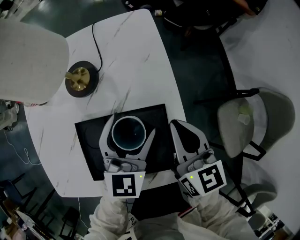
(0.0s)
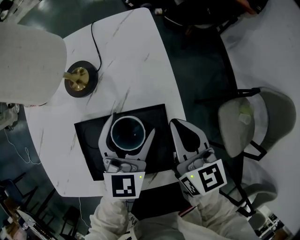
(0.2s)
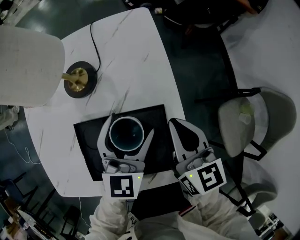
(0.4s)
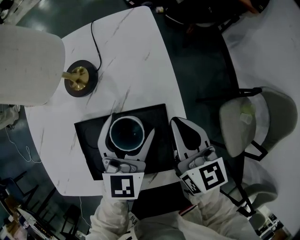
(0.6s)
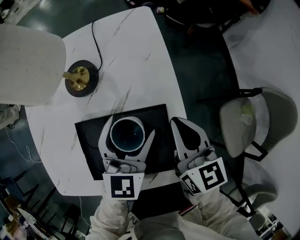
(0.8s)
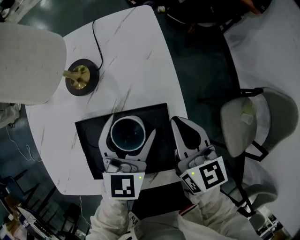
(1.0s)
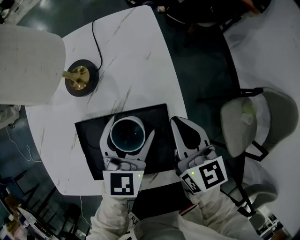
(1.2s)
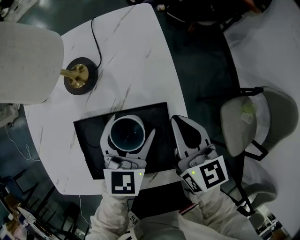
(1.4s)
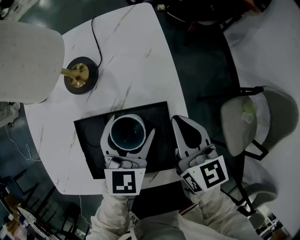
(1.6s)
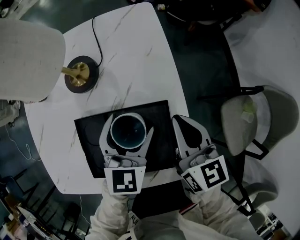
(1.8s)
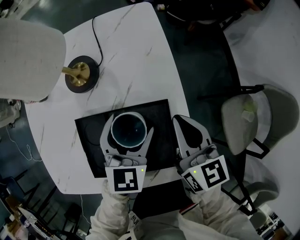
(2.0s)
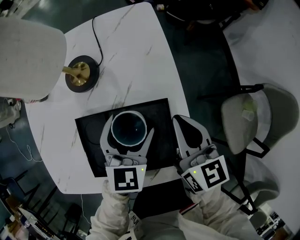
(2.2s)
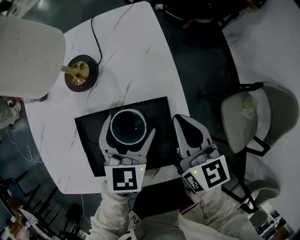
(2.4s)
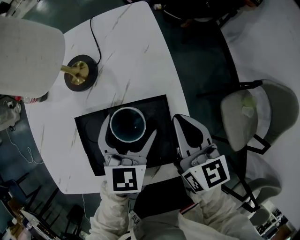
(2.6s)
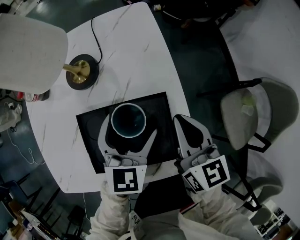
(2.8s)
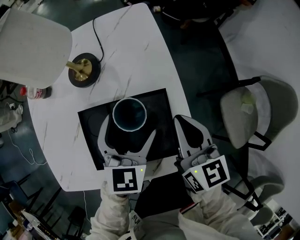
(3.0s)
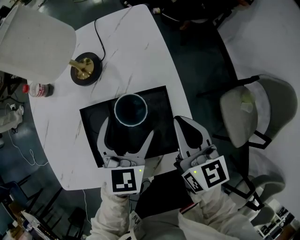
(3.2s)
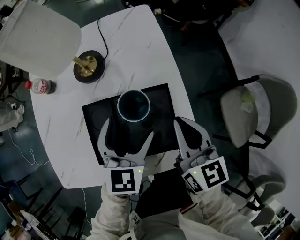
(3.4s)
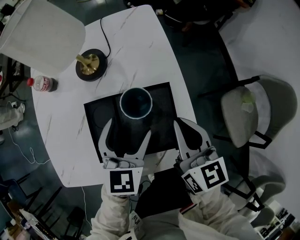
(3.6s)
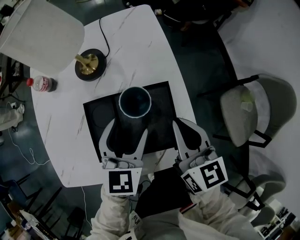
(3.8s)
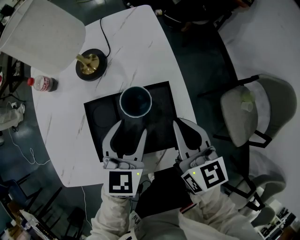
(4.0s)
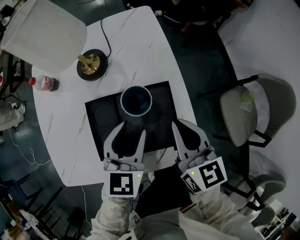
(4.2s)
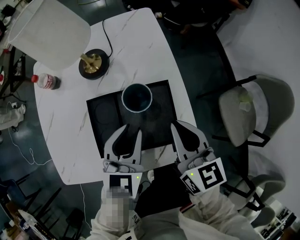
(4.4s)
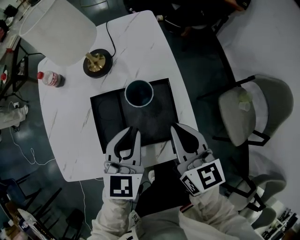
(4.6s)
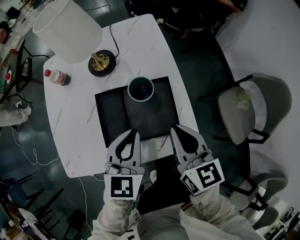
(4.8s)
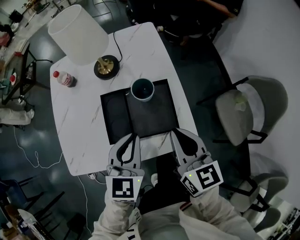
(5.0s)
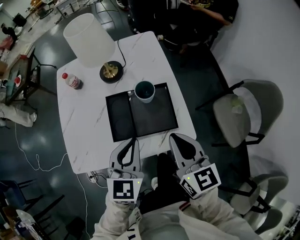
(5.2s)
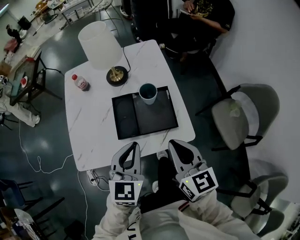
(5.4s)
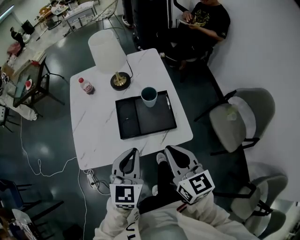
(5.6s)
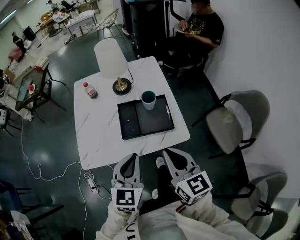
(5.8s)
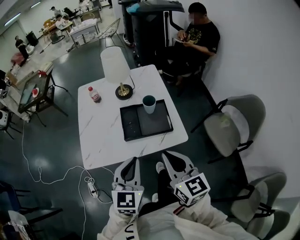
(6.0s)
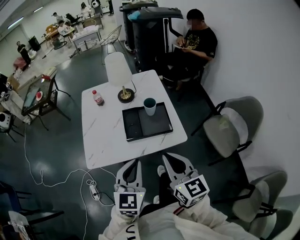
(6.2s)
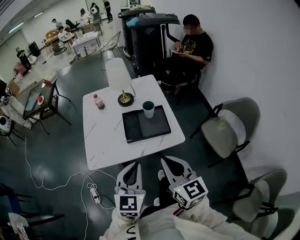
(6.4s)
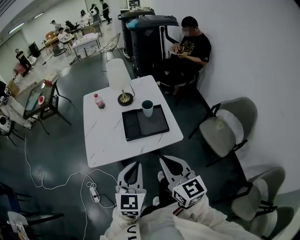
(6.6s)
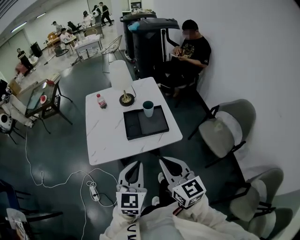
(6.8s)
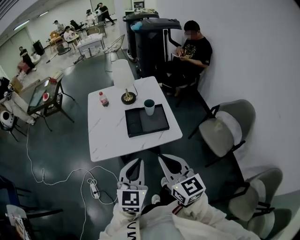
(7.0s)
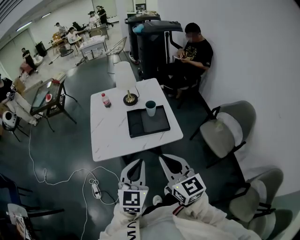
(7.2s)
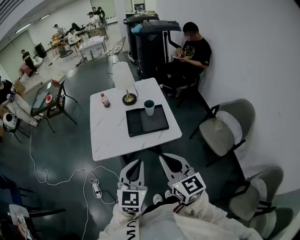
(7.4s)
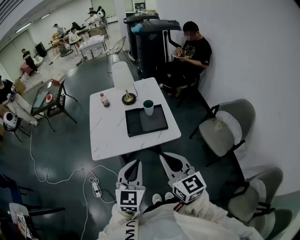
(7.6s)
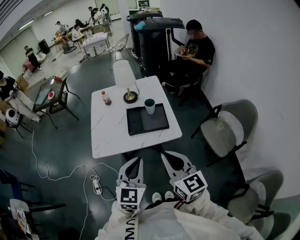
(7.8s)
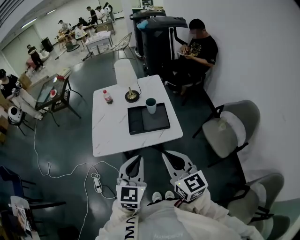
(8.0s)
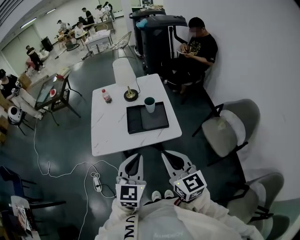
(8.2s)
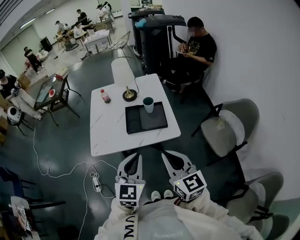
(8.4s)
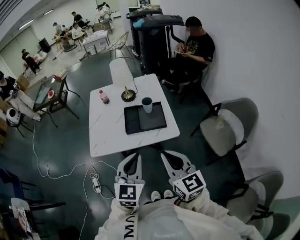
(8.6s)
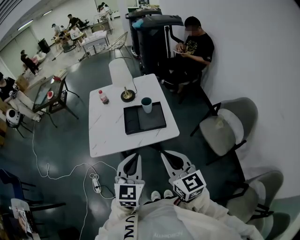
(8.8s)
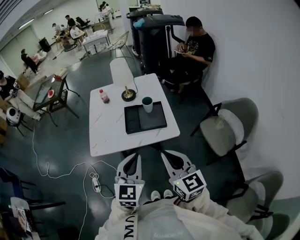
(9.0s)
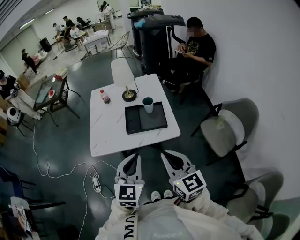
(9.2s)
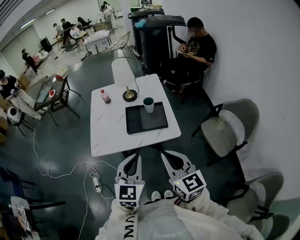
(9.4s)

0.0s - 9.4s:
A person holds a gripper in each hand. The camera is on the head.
0.0s - 1.6s: The grippers move only a little.
1.6s - 3.2s: The left gripper shifts by approximately 5 cm. The right gripper shifts some 5 cm backward.
3.2s - 4.8s: The left gripper is displaced backward and upward by some 10 cm, and closes up. The right gripper heads backward, covering some 10 cm.
4.8s - 6.2s: Both grippers move backward and upward, about 30 cm.
6.2s - 7.8s: The grippers both shift backward and upward by roughly 10 cm.
7.8s - 9.4s: The grippers stay close to where they were, moving slightly.

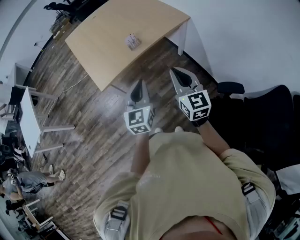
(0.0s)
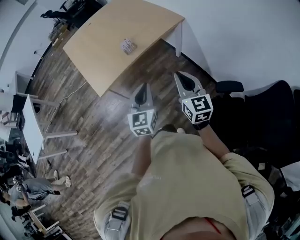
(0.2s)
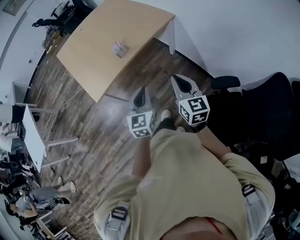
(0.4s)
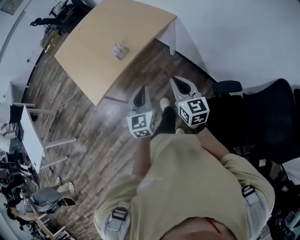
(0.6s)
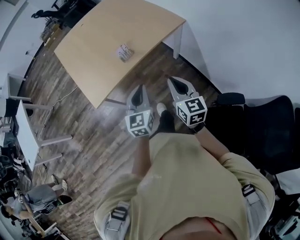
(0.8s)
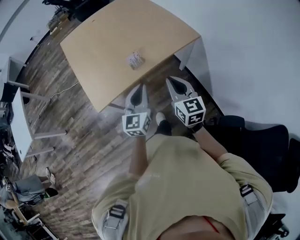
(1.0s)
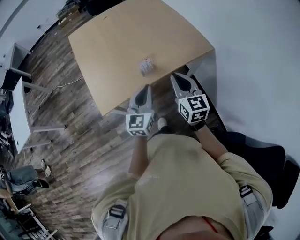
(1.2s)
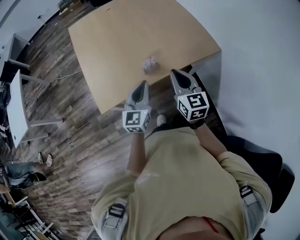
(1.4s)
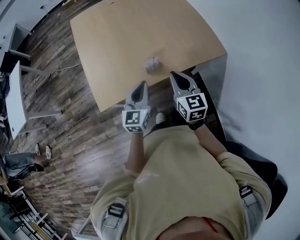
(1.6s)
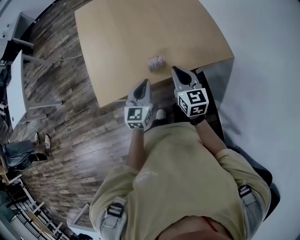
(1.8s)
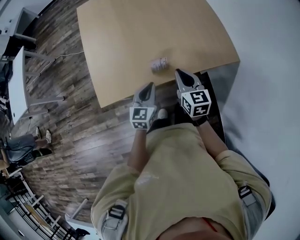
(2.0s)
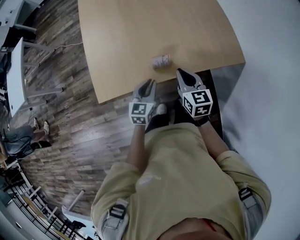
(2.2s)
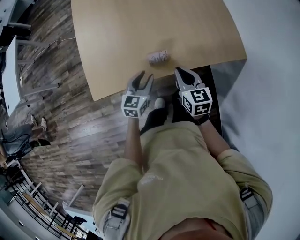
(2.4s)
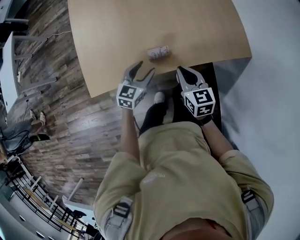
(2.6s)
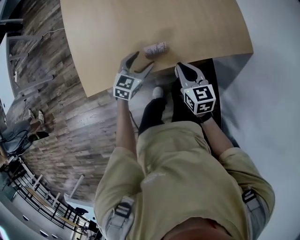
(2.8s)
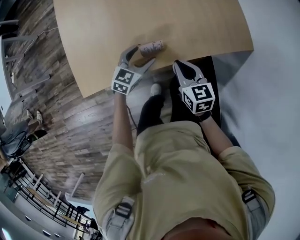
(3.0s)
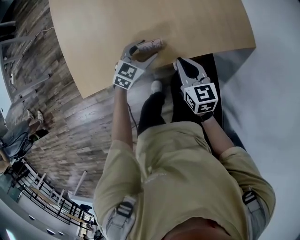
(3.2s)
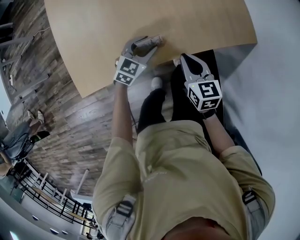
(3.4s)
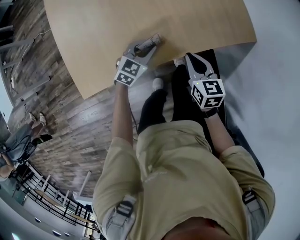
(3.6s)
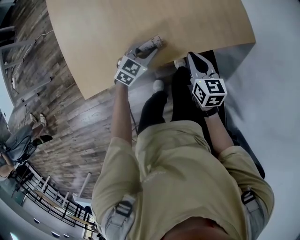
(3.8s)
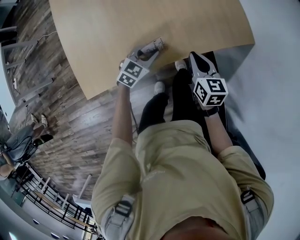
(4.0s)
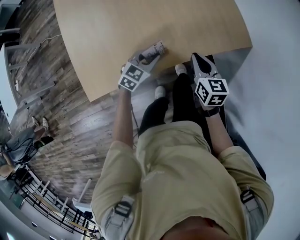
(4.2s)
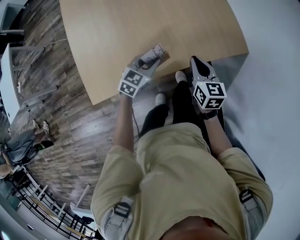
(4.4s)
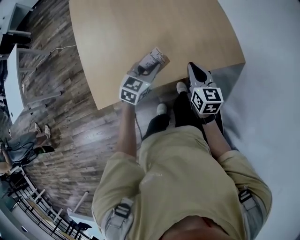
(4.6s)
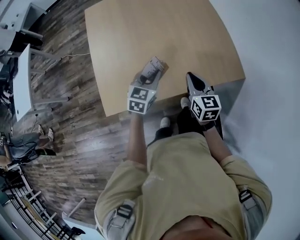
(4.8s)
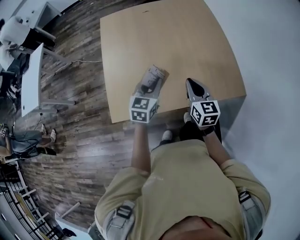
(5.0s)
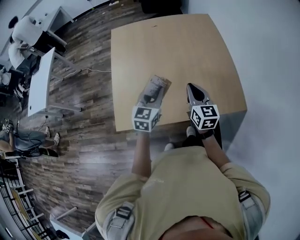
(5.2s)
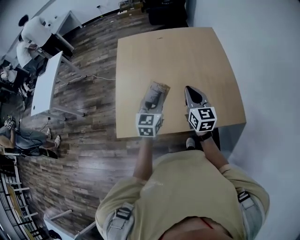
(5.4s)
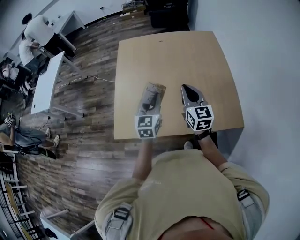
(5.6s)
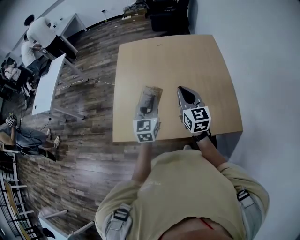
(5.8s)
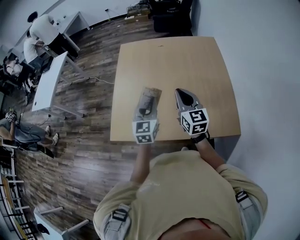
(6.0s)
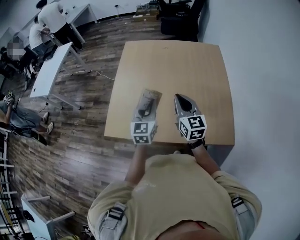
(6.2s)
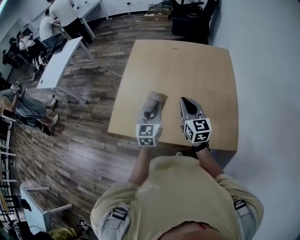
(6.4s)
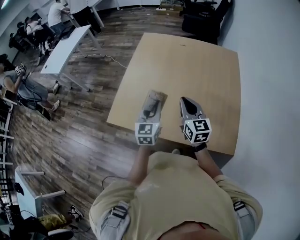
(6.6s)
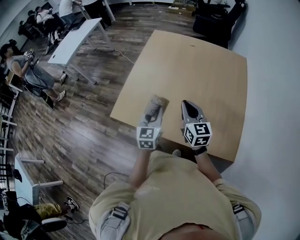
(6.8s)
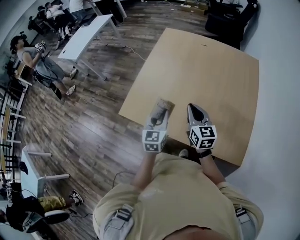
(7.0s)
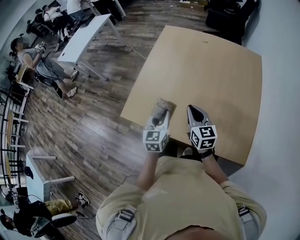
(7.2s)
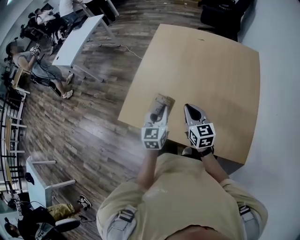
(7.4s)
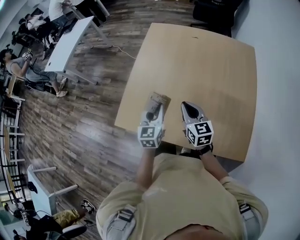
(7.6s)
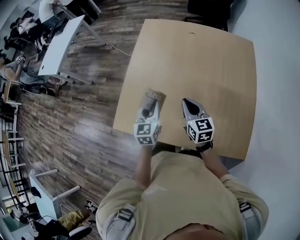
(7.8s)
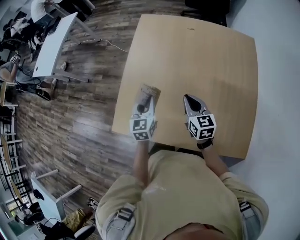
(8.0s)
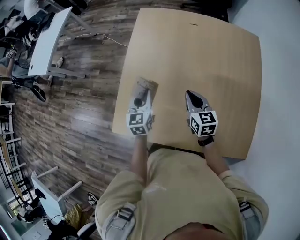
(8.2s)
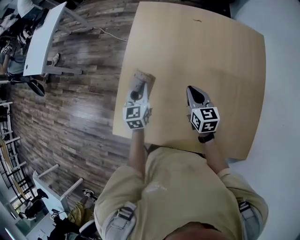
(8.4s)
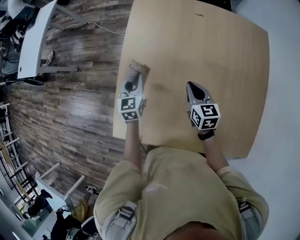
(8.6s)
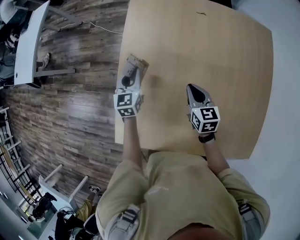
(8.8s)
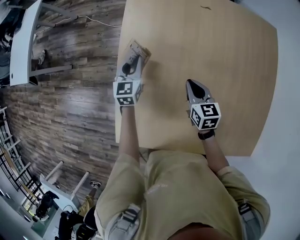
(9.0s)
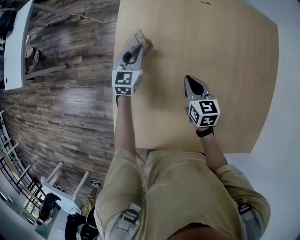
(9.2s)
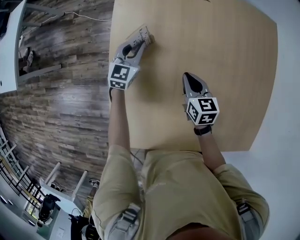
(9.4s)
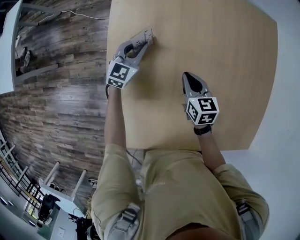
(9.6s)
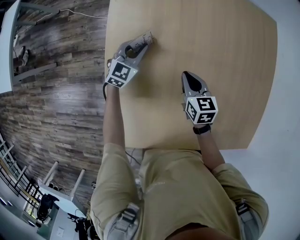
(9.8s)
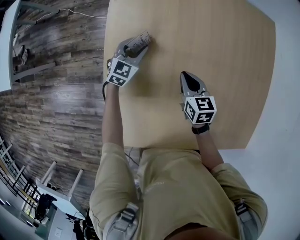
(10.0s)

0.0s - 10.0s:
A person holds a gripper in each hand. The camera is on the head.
0.0s - 1.4s: The grippers both shift forward by approximately 35 cm.
1.4s - 2.8s: The grippers both shift downward and forward by approximately 25 cm. The left gripper turns by approximately 30 degrees, and opens its fingers. Meanwhile the right gripper turns by approximately 30 degrees.
2.8s - 4.2s: The left gripper closes, while the right gripper changes place by about 5 cm.
4.2s - 5.8s: Both grippers move upward, roughly 30 cm. The right gripper changes its angle by roughly 40 degrees. The left gripper rotates about 60 degrees.
5.8s - 7.2s: The grippers both shift downward by approximately 10 cm. The right gripper swivels some 30 degrees, while the left gripper swivels some 20 degrees.
7.2s - 8.6s: The left gripper goes some 40 cm forward, while the right gripper shifts approximately 30 cm forward and downward.
8.6s - 10.0s: The right gripper heads downward and forward, covering some 15 cm, while the left gripper travels downward and forward by roughly 20 cm, and changes its angle by about 40 degrees.

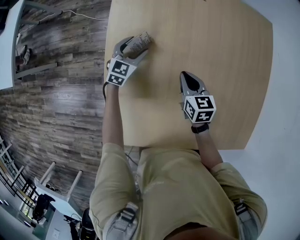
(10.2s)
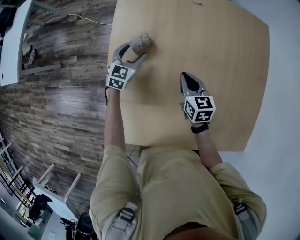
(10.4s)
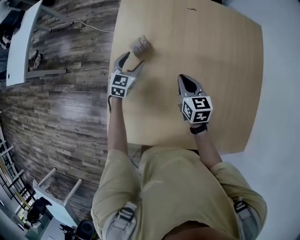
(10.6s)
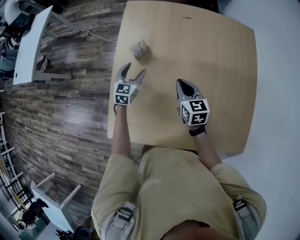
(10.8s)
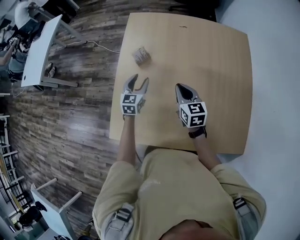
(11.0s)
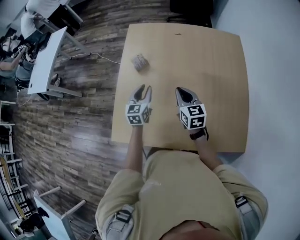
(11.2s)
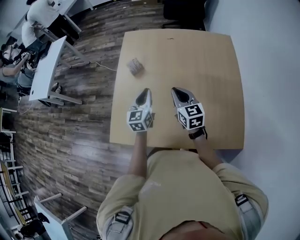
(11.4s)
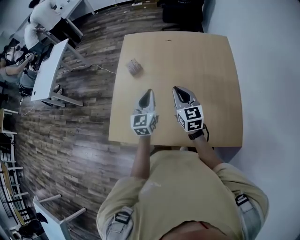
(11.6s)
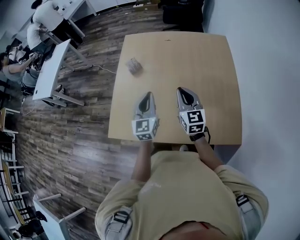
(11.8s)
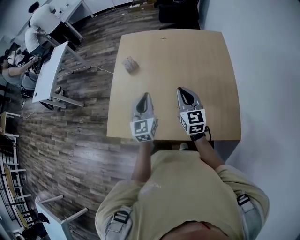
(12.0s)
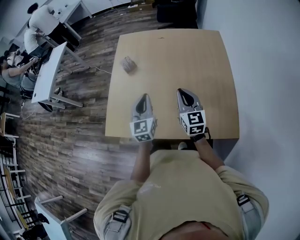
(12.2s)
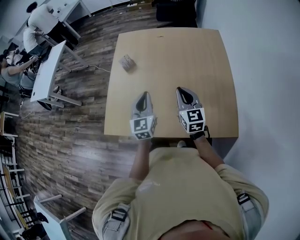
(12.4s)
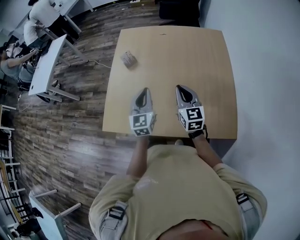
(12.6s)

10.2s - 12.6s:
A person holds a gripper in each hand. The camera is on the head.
10.2s - 11.4s: The left gripper moves backward, upward and to the right, some 40 cm, changes its angle by roughly 30 degrees, and closes up; the right gripper goes roughly 30 cm upward, backward and to the right, and rotates about 20 degrees.
11.4s - 12.6s: The right gripper goes roughly 15 cm backward and to the right. The left gripper goes about 15 cm backward, to the right and upward.

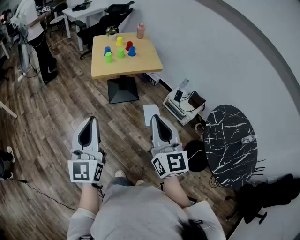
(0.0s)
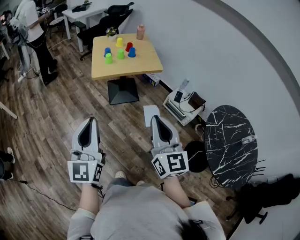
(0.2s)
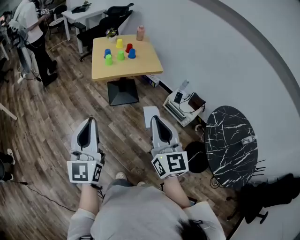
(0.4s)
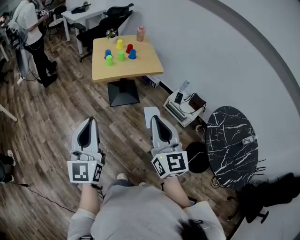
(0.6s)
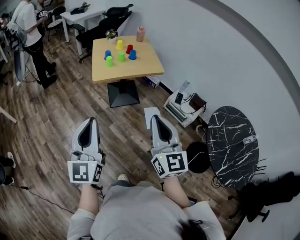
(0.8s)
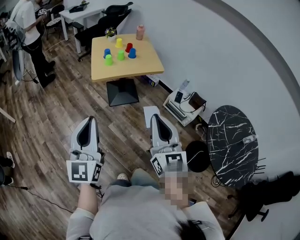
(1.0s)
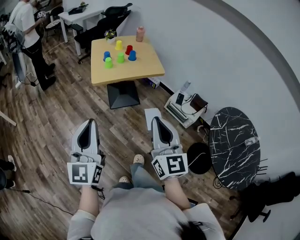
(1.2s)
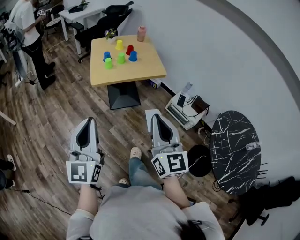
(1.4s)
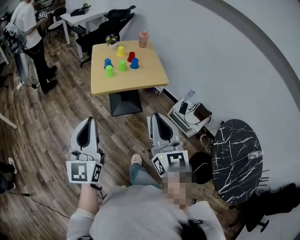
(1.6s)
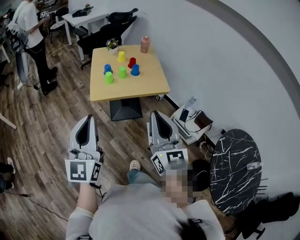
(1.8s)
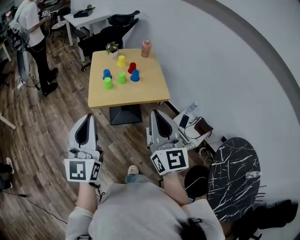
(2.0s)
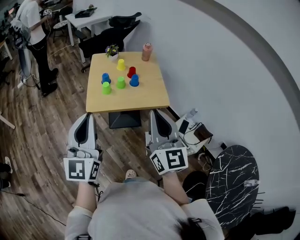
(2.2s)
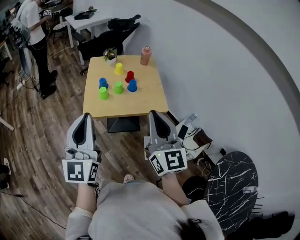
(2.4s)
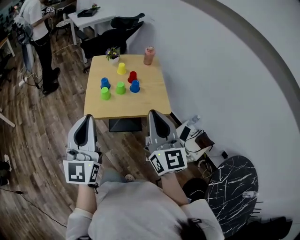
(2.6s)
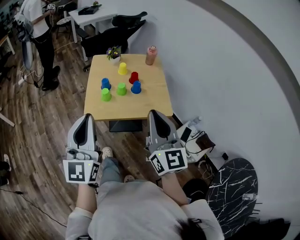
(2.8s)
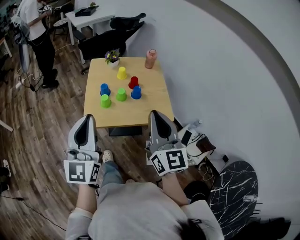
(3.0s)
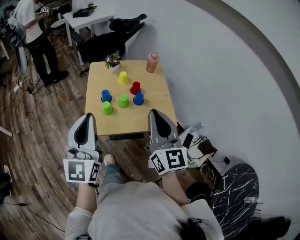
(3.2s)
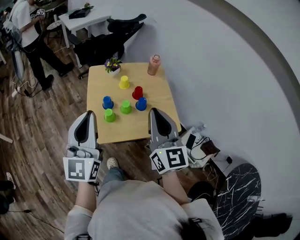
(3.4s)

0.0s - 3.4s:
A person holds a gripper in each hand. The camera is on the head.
0.0s - 1.6s: Both grippers travel together forward, roughly 15 cm.
1.6s - 3.4s: The two grippers go about 40 cm forward.
